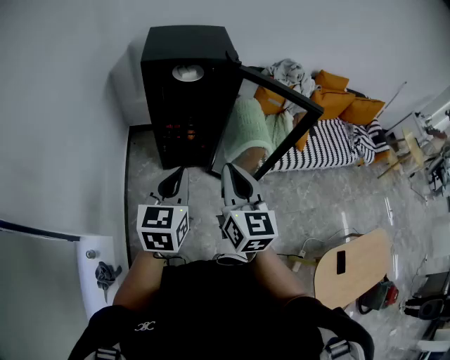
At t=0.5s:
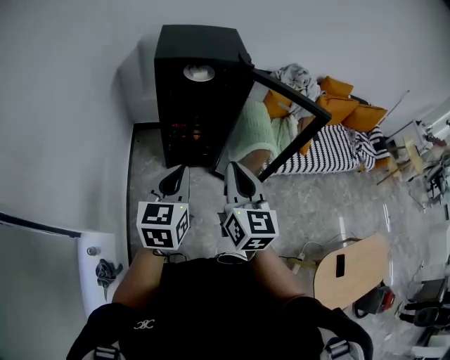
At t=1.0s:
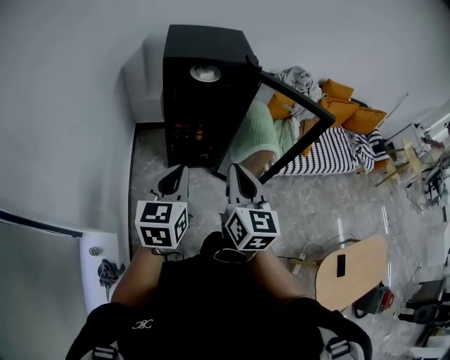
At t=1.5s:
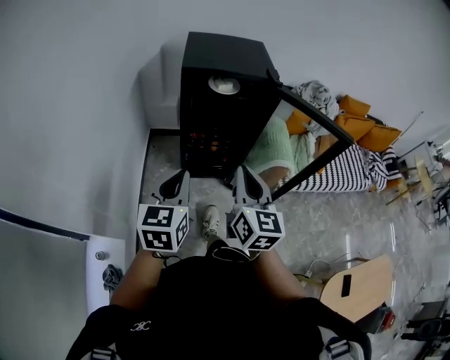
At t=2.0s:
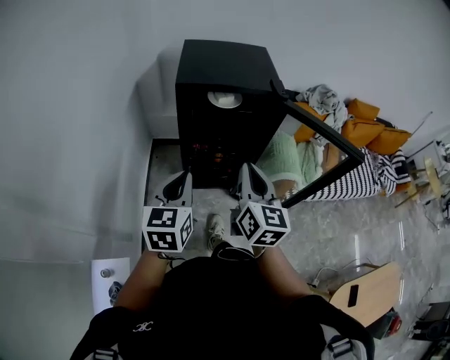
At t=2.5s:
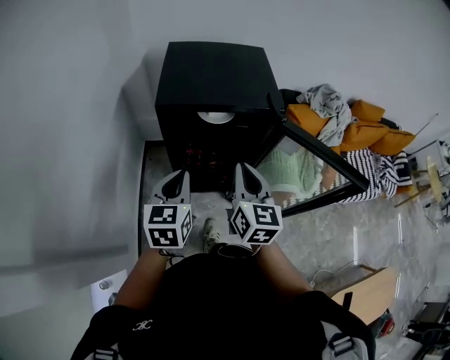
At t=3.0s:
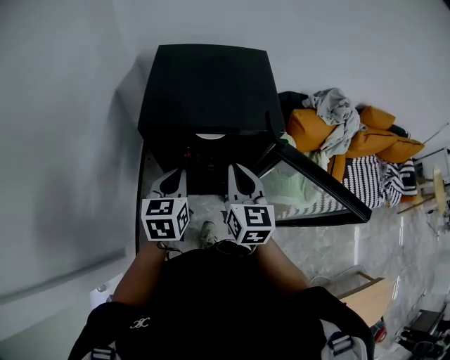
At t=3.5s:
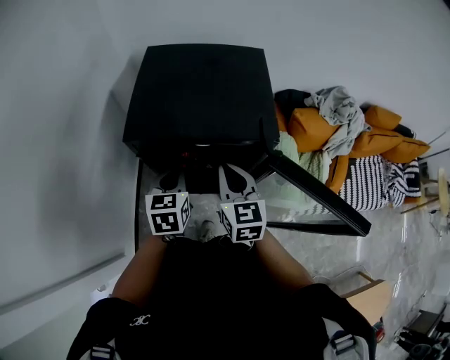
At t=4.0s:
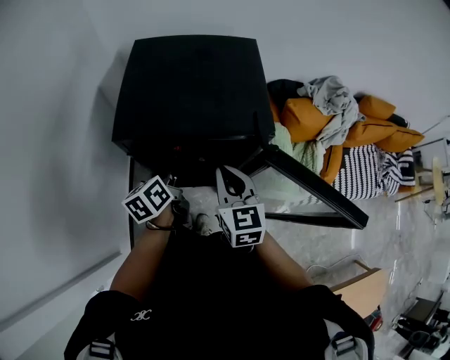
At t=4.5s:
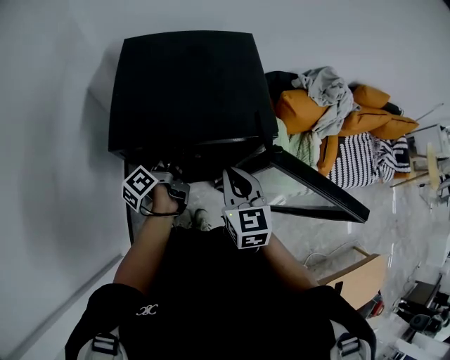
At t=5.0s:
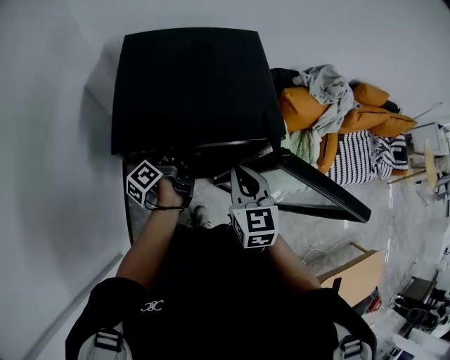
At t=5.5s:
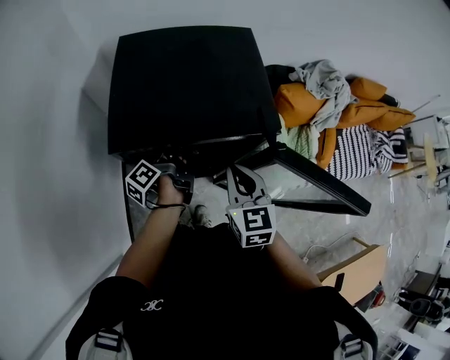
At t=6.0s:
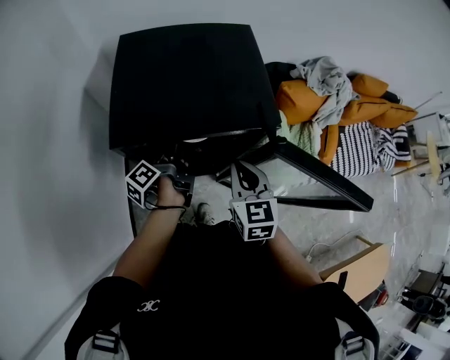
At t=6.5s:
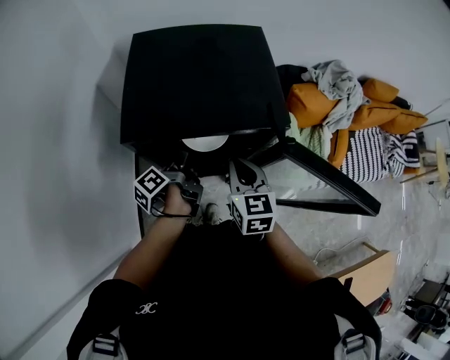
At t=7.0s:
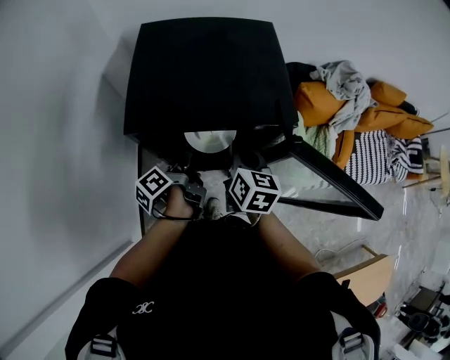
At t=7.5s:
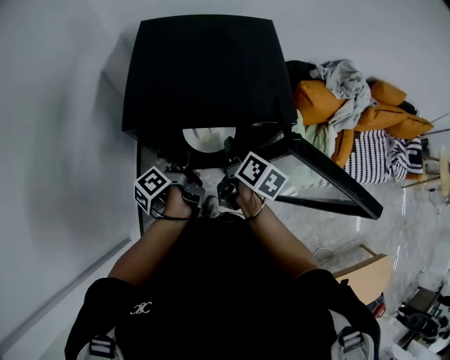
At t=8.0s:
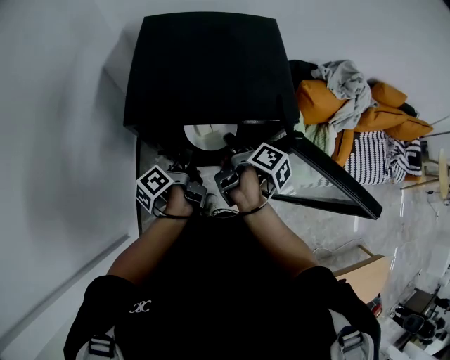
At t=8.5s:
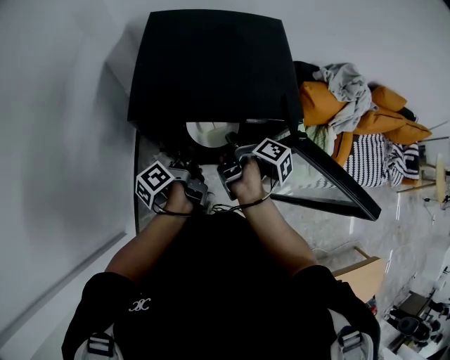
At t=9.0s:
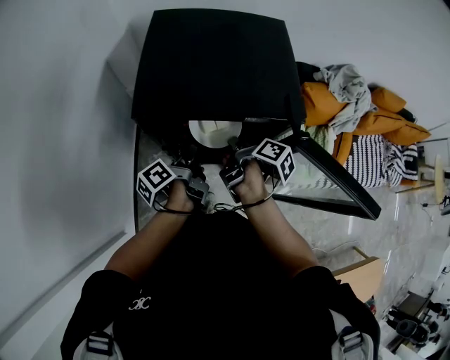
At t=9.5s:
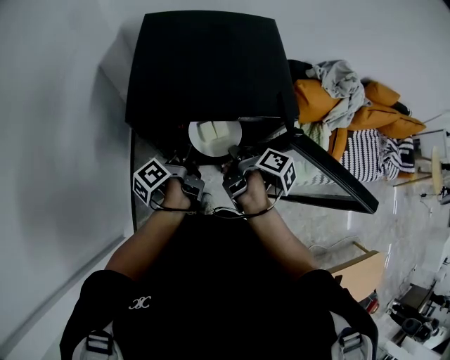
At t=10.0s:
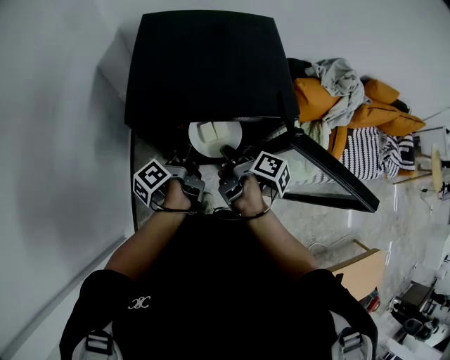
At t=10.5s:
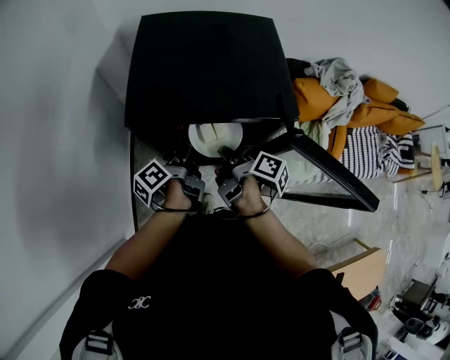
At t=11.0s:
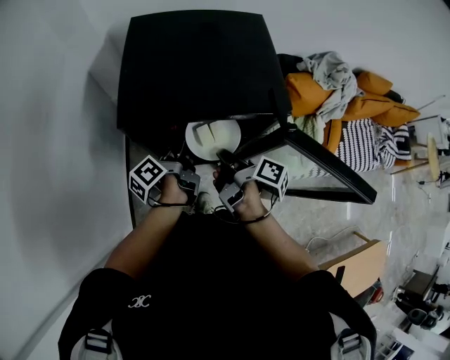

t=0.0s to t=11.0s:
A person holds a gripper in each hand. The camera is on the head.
t=0.0s to t=2.0s: The grippers both shift forward and to the left by roughly 15 cm.
t=2.0s to t=3.5s: Both grippers move forward, about 25 cm. The right gripper turns by roughly 20 degrees.
t=3.5s to t=5.5s: The left gripper heads forward and downward, covering roughly 10 cm, rolls counterclockwise, seen from behind, by about 80 degrees, and opens, then closes again.
t=5.5s to t=7.5s: The right gripper goes about 5 cm downward, rotates around the line of its fingers by approximately 50 degrees, clockwise from behind, and opens its fingers; the left gripper shifts some 10 cm backward.
t=7.5s to t=9.0s: The right gripper rotates some 30 degrees, and closes.
t=9.0s to t=11.0s: The grippers move only a little.

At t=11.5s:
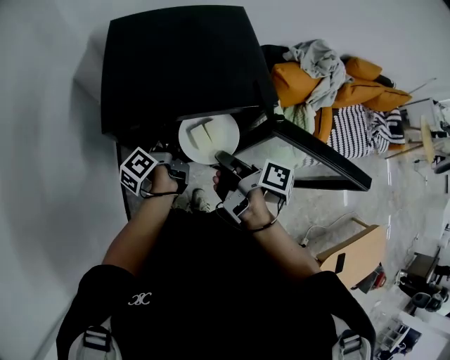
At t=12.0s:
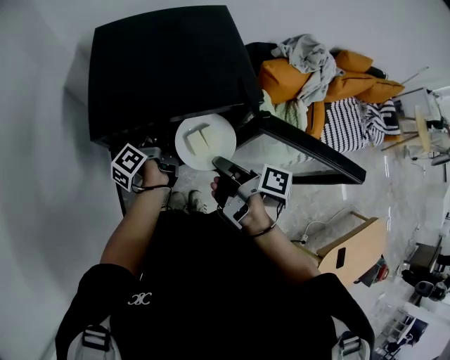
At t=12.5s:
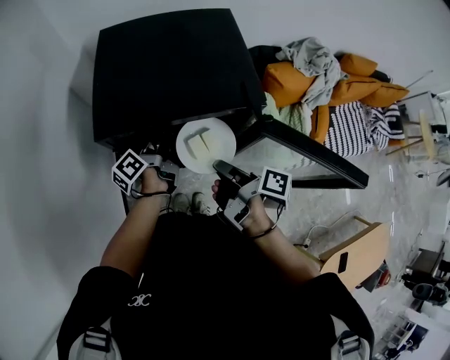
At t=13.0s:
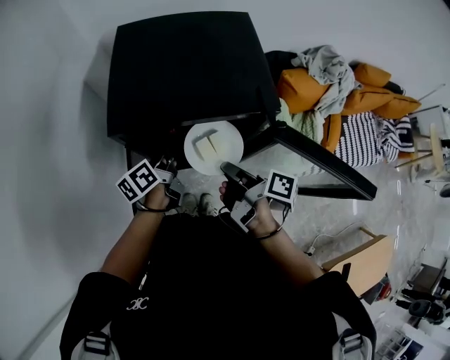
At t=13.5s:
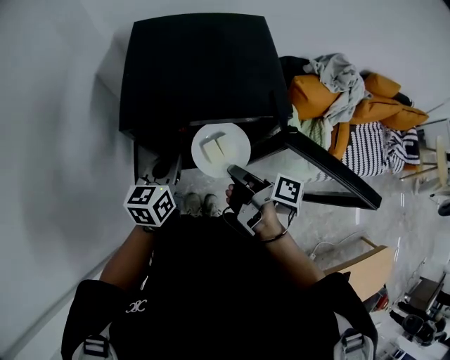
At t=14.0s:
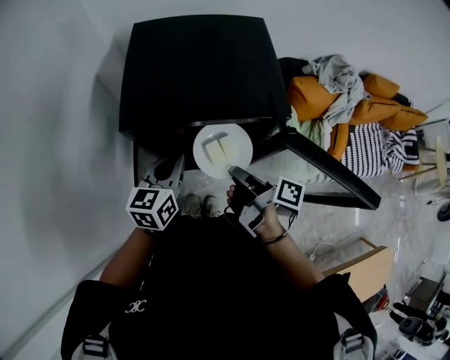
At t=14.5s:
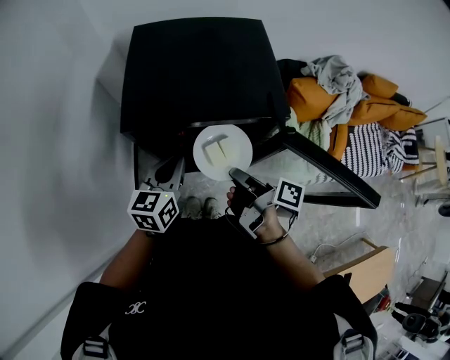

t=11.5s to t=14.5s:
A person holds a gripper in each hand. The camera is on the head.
t=11.5s to t=13.0s: The left gripper rotates approximately 20 degrees.
t=13.0s to t=14.5s: The left gripper goes some 5 cm upward, and changes its angle by approximately 40 degrees.

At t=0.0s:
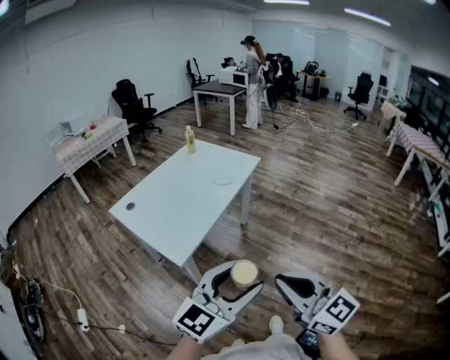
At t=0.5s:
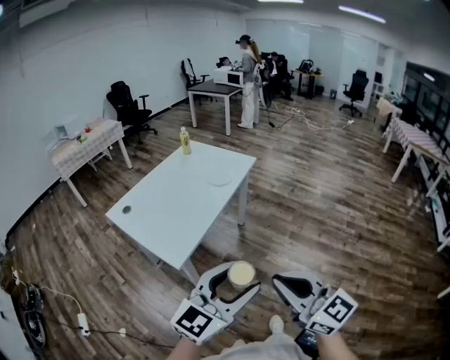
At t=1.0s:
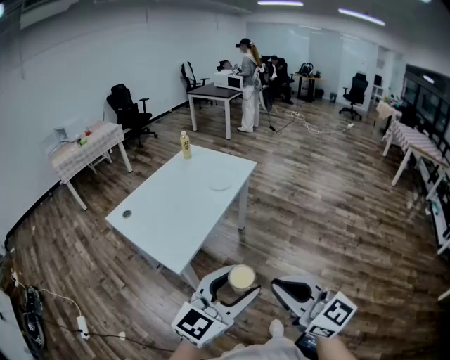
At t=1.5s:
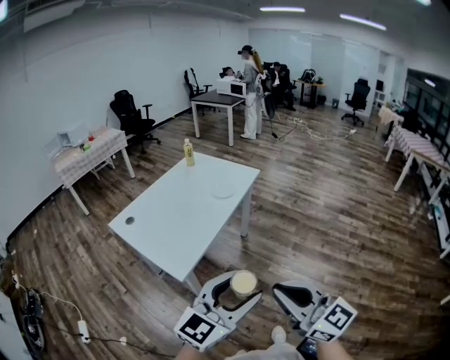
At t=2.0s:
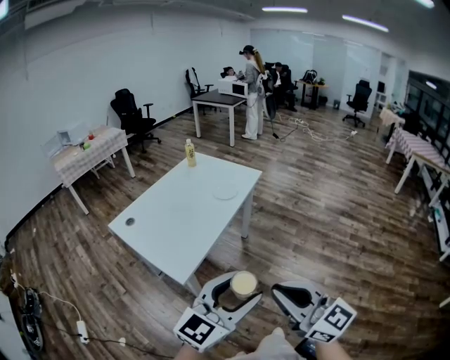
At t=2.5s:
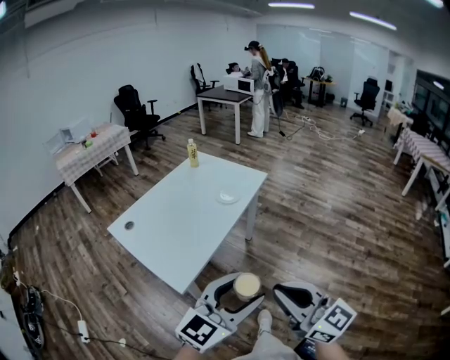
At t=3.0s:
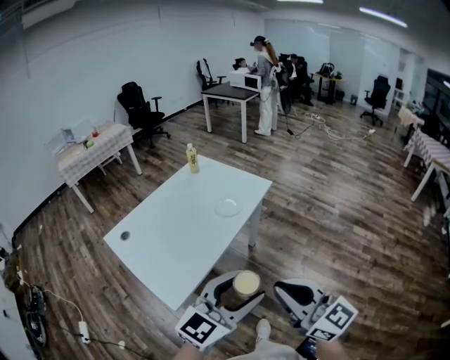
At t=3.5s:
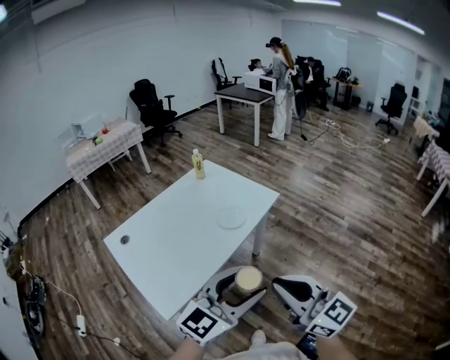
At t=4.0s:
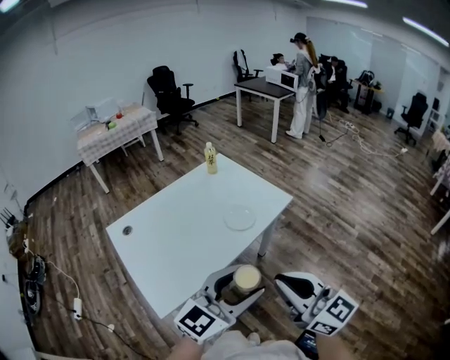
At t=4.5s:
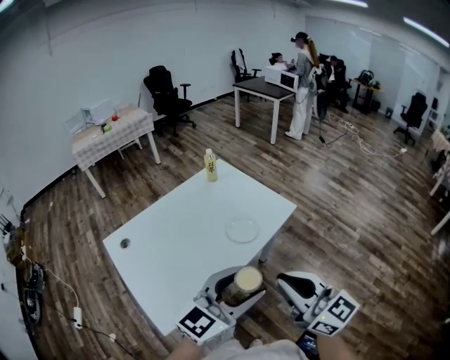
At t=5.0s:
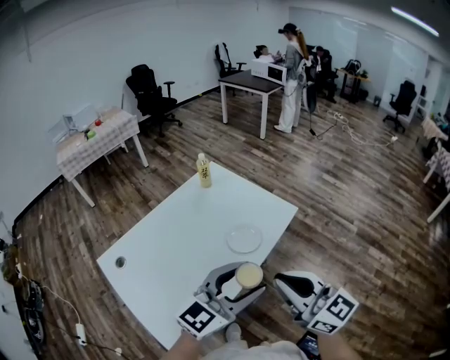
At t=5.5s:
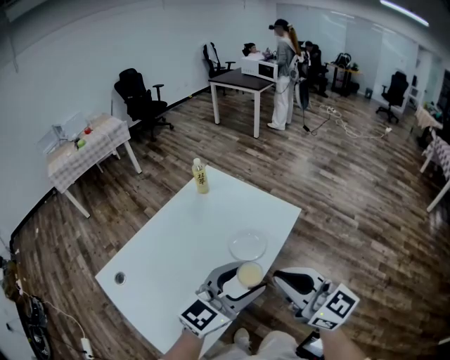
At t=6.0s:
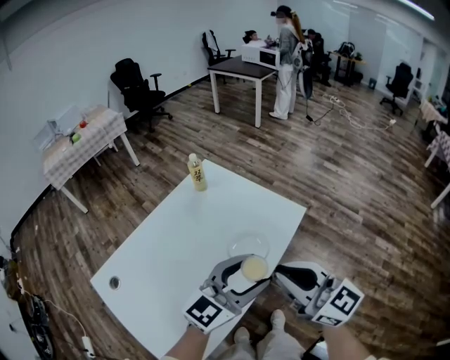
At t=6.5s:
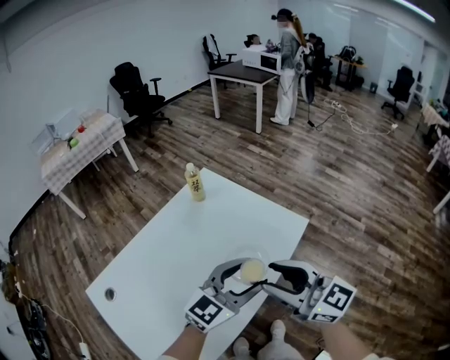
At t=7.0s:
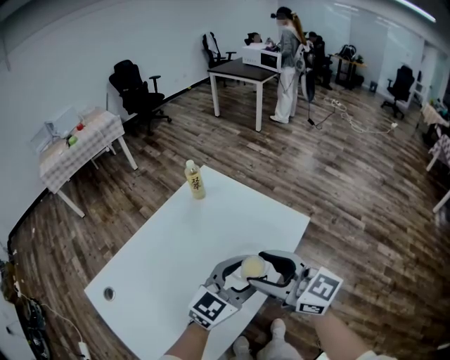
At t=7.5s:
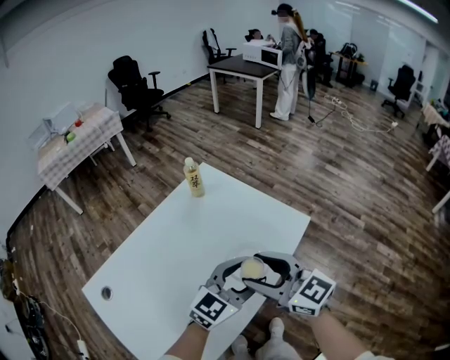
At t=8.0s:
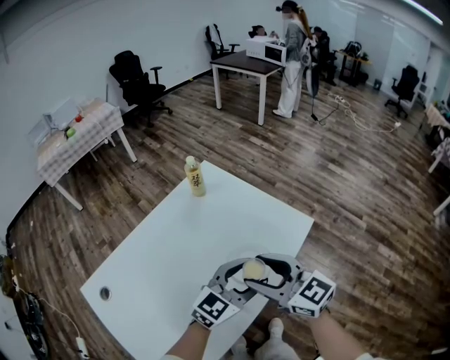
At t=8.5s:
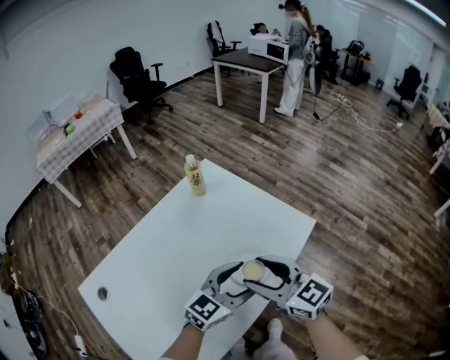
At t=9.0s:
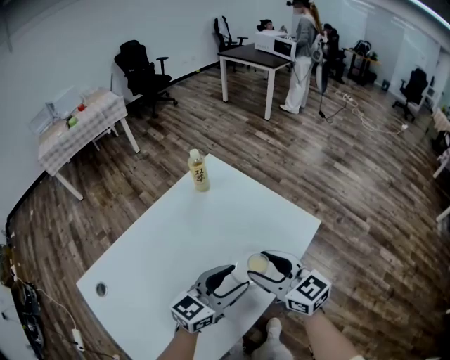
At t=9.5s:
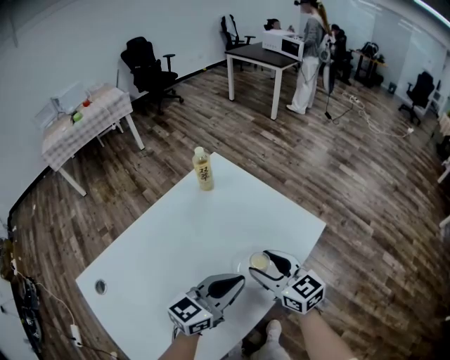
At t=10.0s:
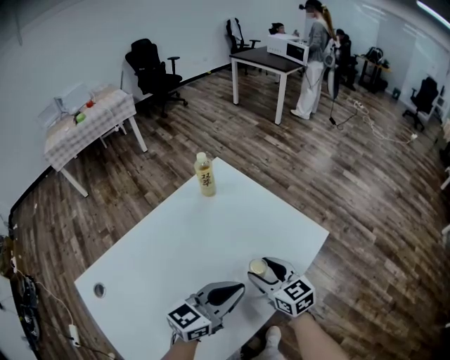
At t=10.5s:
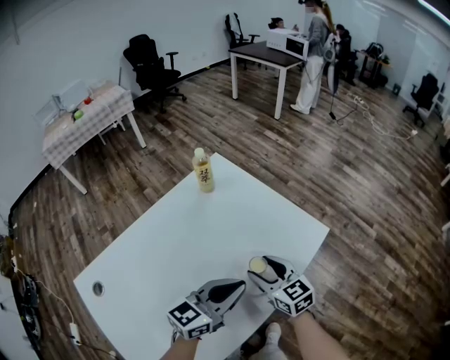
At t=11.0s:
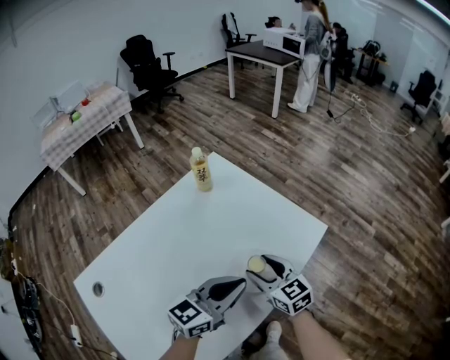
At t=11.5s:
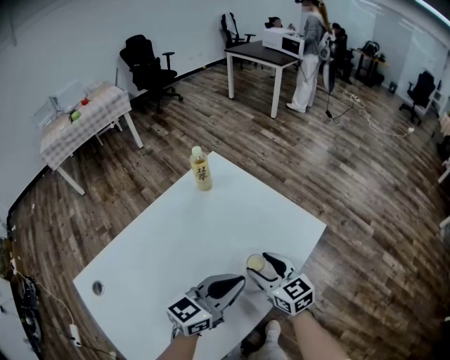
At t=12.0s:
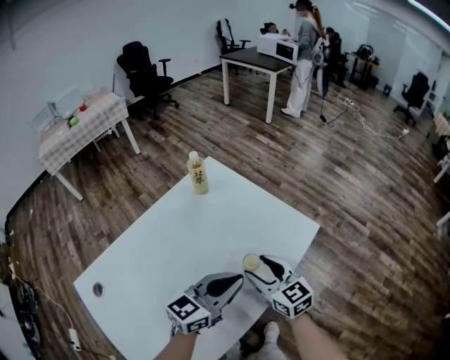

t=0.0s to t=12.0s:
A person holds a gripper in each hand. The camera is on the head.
t=0.0s to t=2.0s: The grippers stay close to where they were, moving slightly.
t=2.0s to t=4.0s: The two grippers go roughly 30 cm forward.
t=4.0s to t=6.0s: The grippers both shift forward by approximately 25 cm.
t=6.0s to t=8.0s: The right gripper shifts about 15 cm downward, forward and to the left, and opens its fingers. Meanwhile the left gripper is displaced downward and forward by roughly 15 cm.
t=8.0s to t=10.0s: The left gripper goes roughly 5 cm to the left, turns by some 20 degrees, and closes up, while the right gripper heads downward and forward, covering about 15 cm.
t=10.0s to t=12.0s: The grippers move only a little.

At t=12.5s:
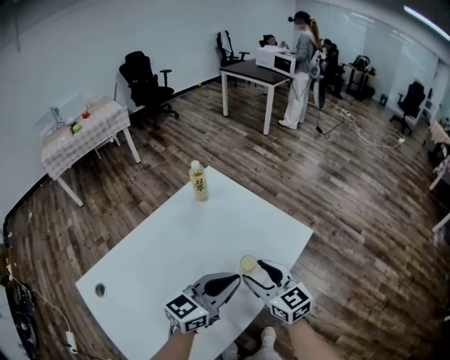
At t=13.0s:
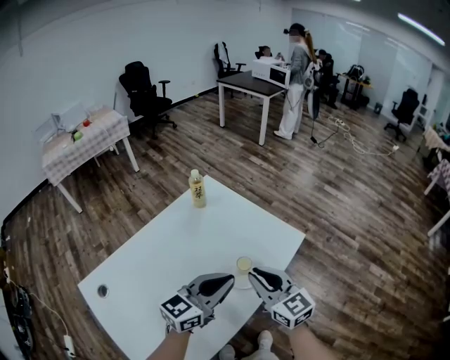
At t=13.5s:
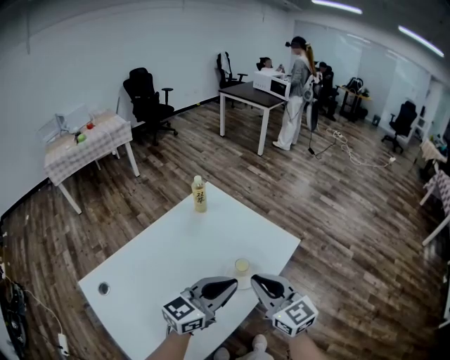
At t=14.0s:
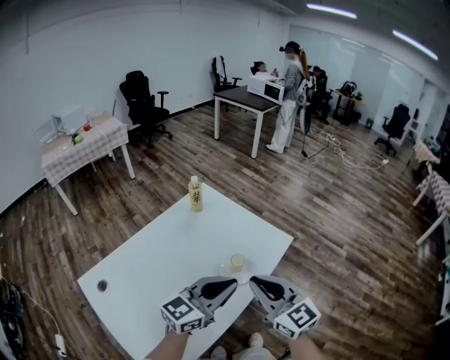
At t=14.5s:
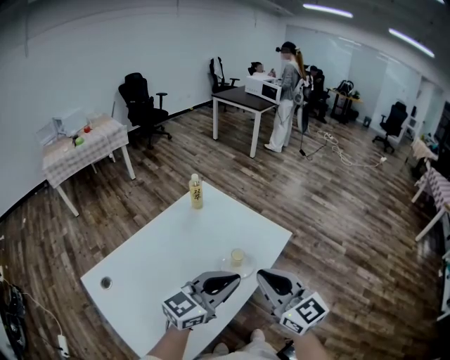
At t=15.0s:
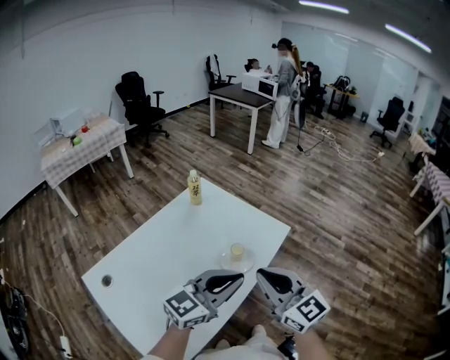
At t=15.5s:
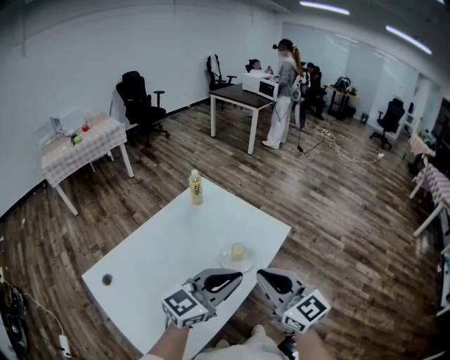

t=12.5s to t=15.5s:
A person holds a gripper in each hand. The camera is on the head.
t=12.5s to t=14.0s: The left gripper moves upward and backward, approximately 10 cm. Meanwhile the right gripper heads upward and backward, covering approximately 15 cm, and closes.
t=14.0s to t=15.5s: The left gripper moves some 5 cm.
